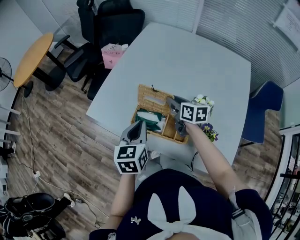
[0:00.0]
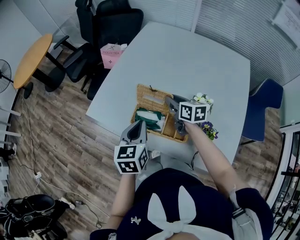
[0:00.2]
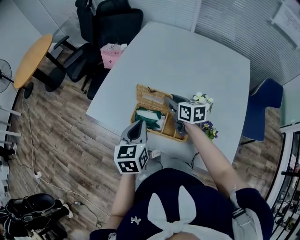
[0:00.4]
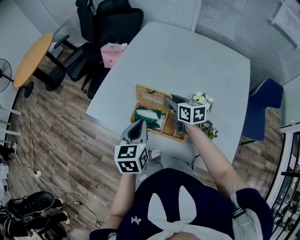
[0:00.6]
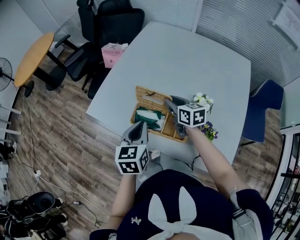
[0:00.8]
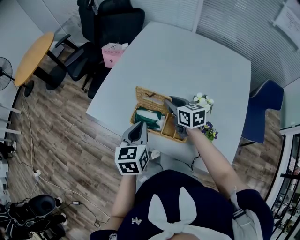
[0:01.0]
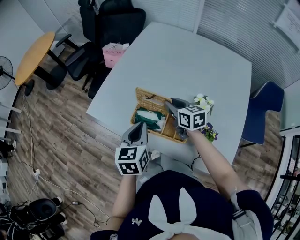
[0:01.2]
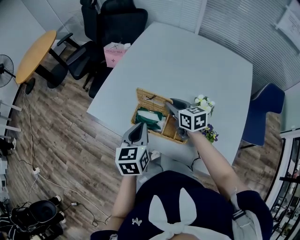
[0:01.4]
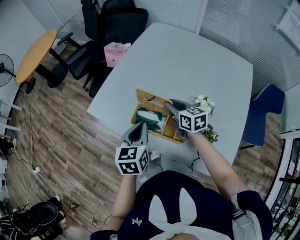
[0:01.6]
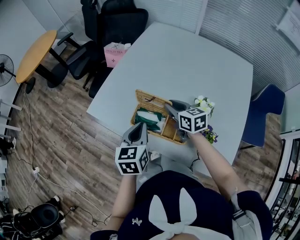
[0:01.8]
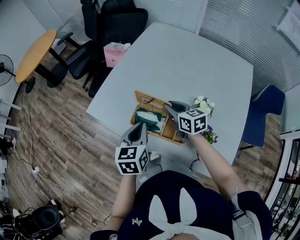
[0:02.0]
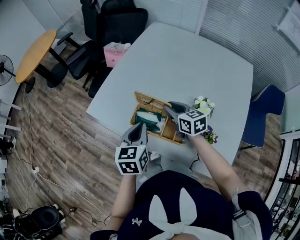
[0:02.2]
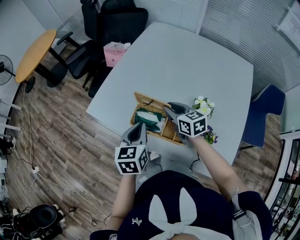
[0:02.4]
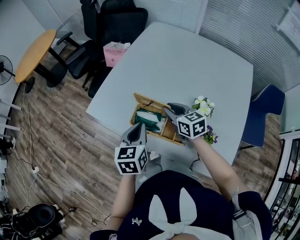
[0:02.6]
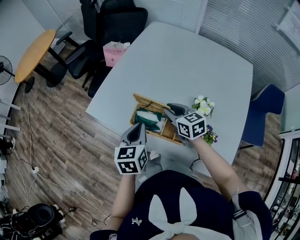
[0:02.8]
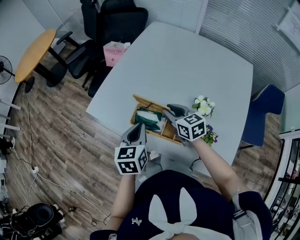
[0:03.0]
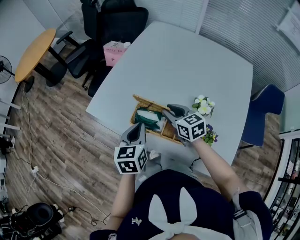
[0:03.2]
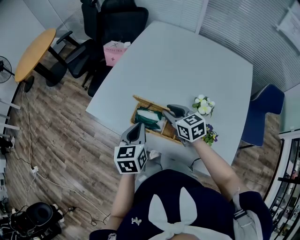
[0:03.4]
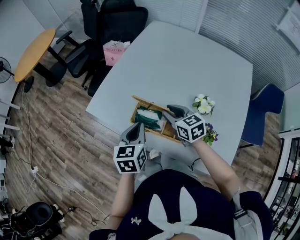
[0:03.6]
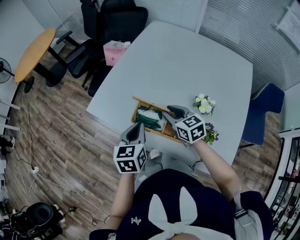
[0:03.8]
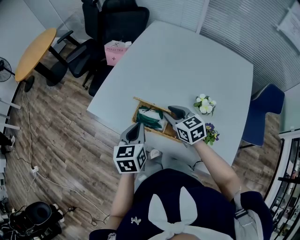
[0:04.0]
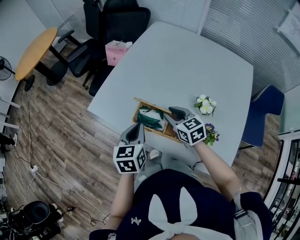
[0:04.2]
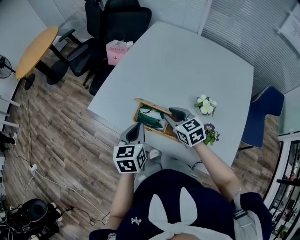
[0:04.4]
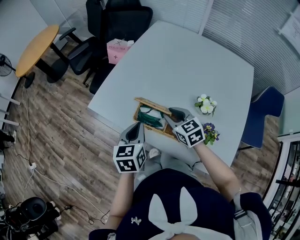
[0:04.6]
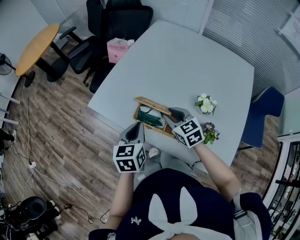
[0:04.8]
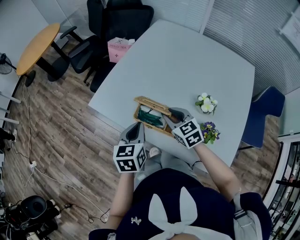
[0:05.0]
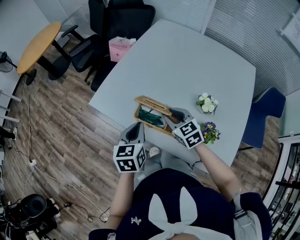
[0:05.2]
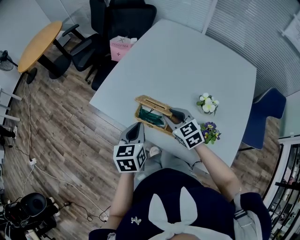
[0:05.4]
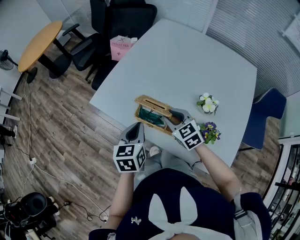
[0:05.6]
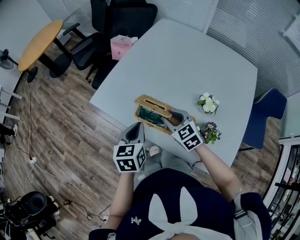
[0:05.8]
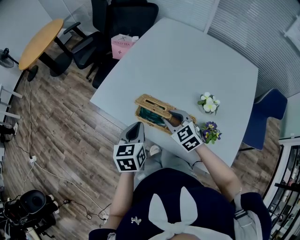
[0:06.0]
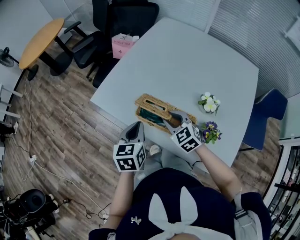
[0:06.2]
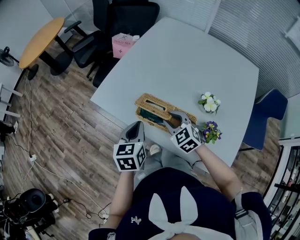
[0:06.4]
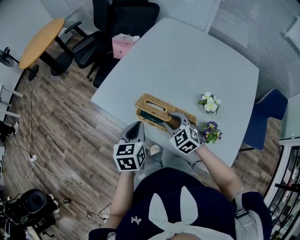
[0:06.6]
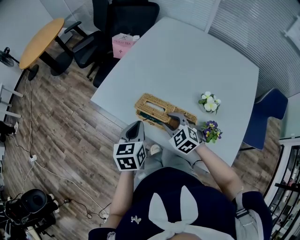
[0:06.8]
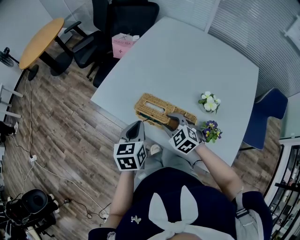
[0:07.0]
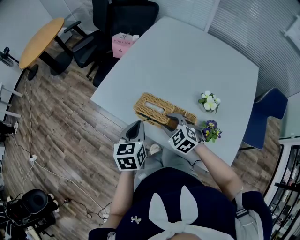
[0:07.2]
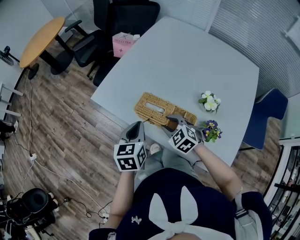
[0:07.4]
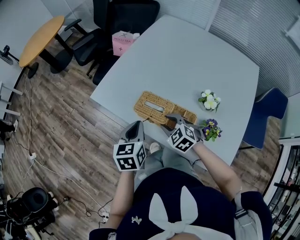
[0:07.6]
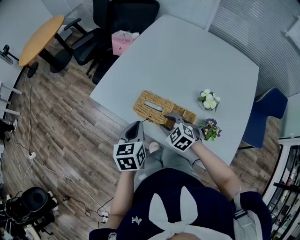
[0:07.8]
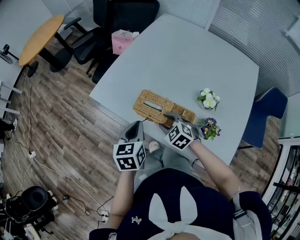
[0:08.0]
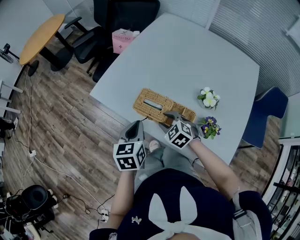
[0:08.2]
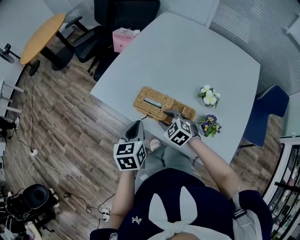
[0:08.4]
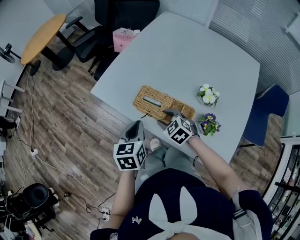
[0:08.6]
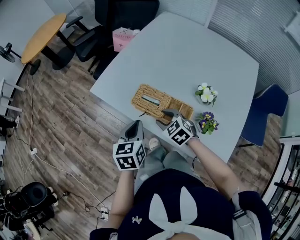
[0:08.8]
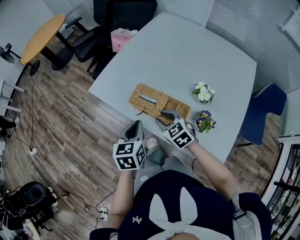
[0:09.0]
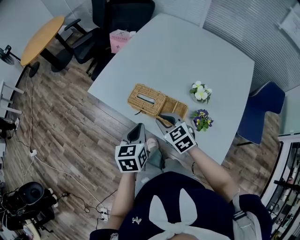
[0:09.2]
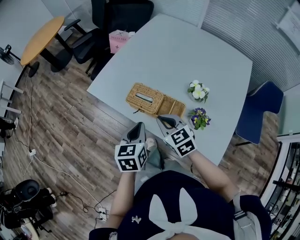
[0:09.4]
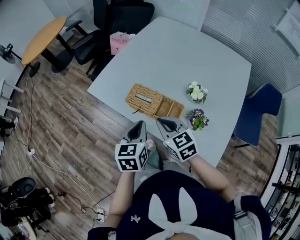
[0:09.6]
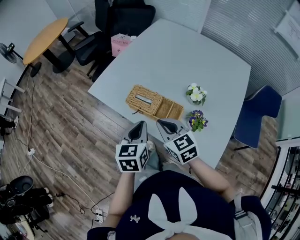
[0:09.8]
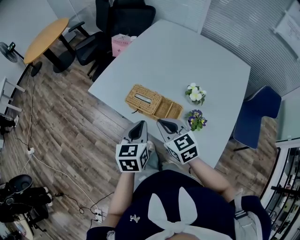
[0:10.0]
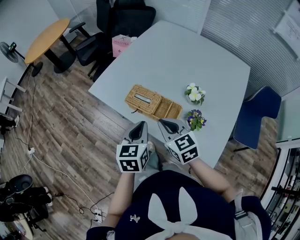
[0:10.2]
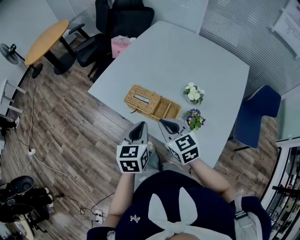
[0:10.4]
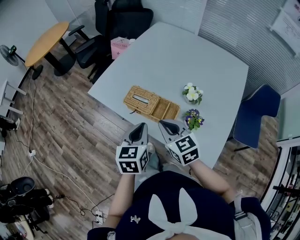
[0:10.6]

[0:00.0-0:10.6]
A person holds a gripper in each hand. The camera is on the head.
0:00.0 to 0:01.6: There are only small adjustments of the grippers.
0:01.6 to 0:03.0: The grippers make only small movements.
0:03.0 to 0:04.6: The grippers stay close to where they were, moving slightly.
0:04.6 to 0:06.0: The grippers stay close to where they were, moving slightly.
0:06.0 to 0:07.6: The right gripper ends up approximately 5 cm from where it was.
0:07.6 to 0:09.0: The left gripper moves roughly 5 cm.
0:09.0 to 0:10.6: The left gripper heads backward and to the right, covering roughly 10 cm. Meanwhile the right gripper moves upward and backward, approximately 15 cm, and closes up.

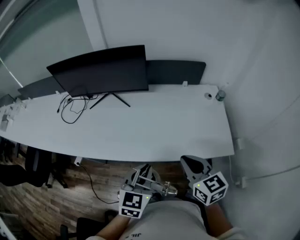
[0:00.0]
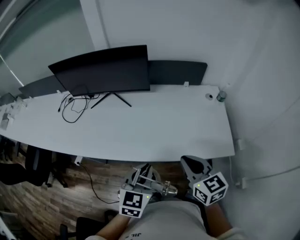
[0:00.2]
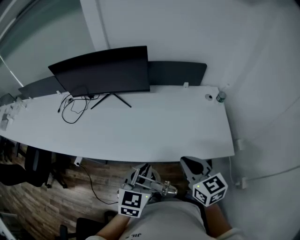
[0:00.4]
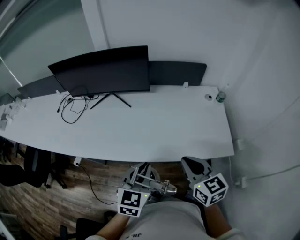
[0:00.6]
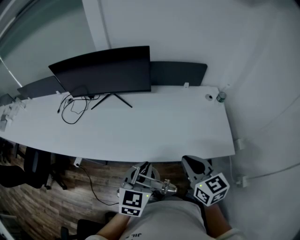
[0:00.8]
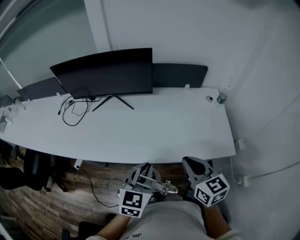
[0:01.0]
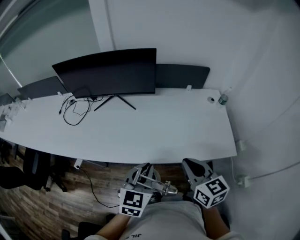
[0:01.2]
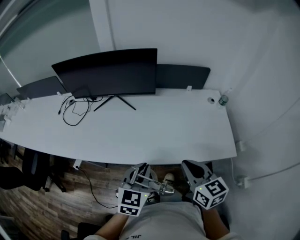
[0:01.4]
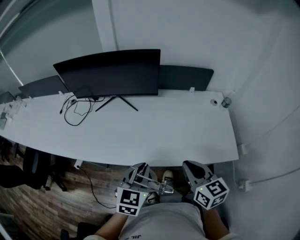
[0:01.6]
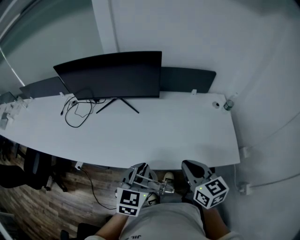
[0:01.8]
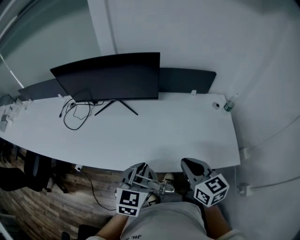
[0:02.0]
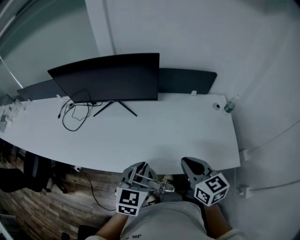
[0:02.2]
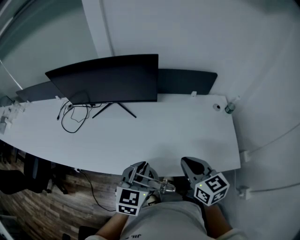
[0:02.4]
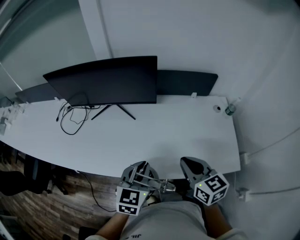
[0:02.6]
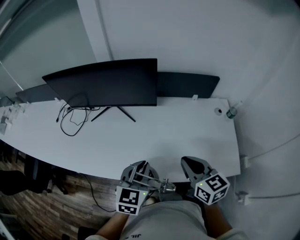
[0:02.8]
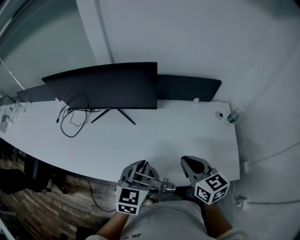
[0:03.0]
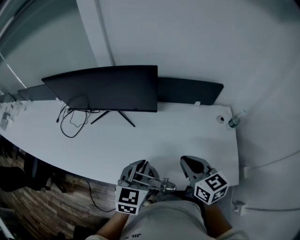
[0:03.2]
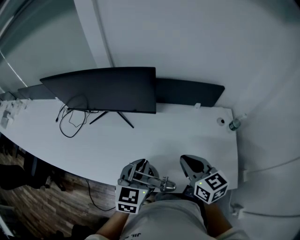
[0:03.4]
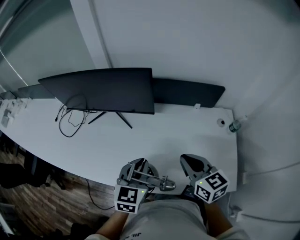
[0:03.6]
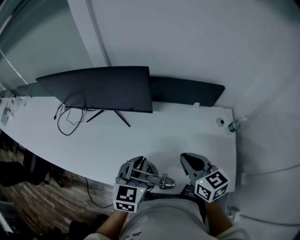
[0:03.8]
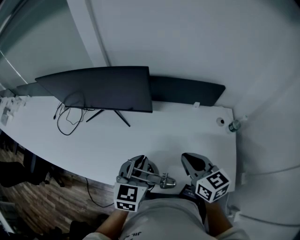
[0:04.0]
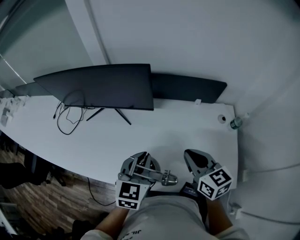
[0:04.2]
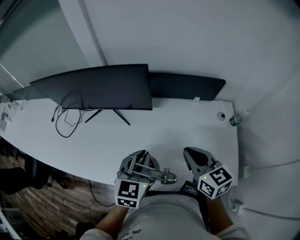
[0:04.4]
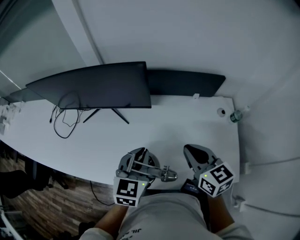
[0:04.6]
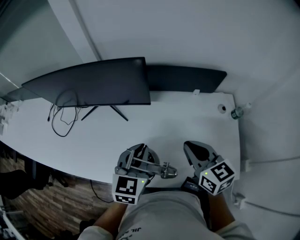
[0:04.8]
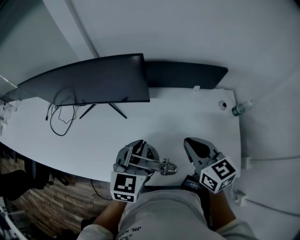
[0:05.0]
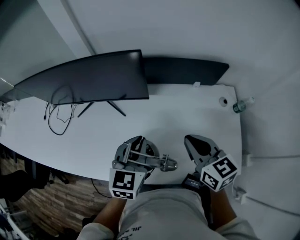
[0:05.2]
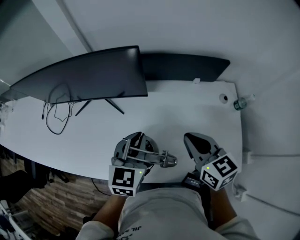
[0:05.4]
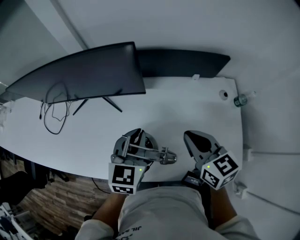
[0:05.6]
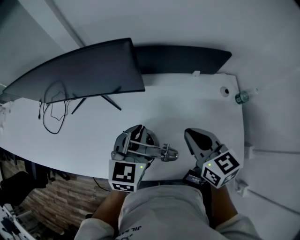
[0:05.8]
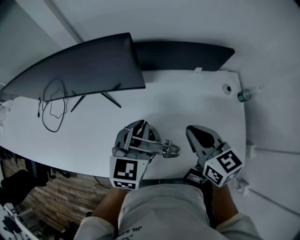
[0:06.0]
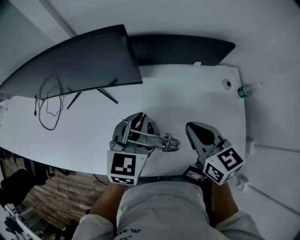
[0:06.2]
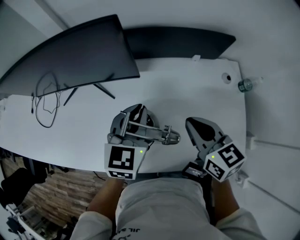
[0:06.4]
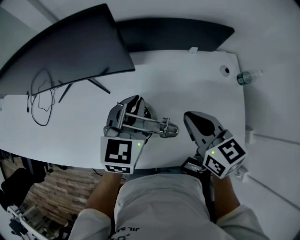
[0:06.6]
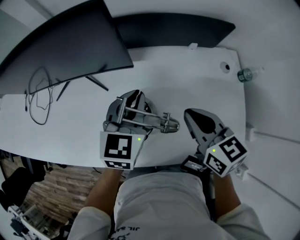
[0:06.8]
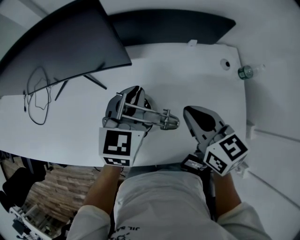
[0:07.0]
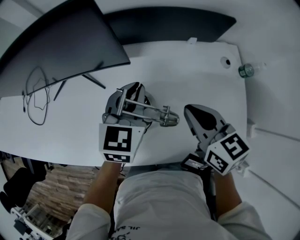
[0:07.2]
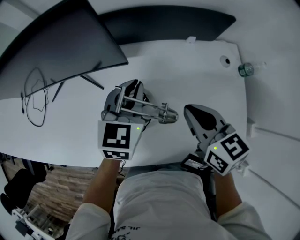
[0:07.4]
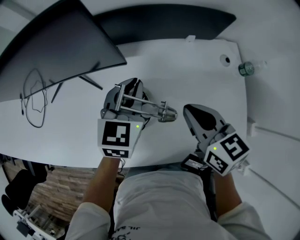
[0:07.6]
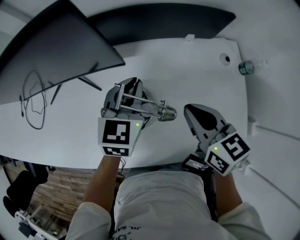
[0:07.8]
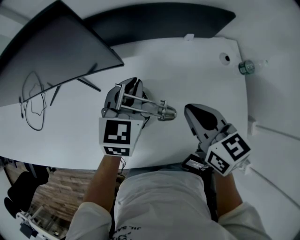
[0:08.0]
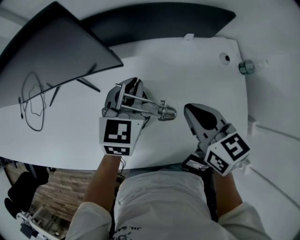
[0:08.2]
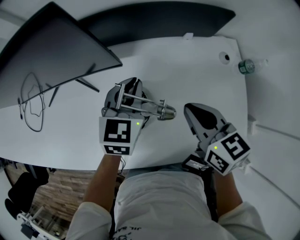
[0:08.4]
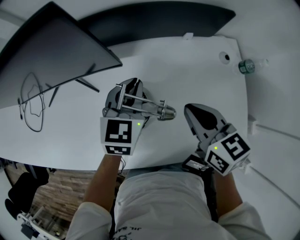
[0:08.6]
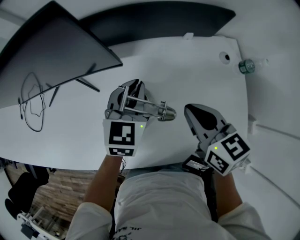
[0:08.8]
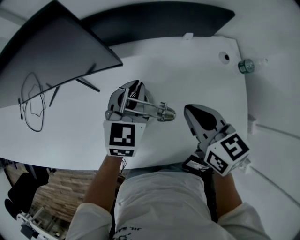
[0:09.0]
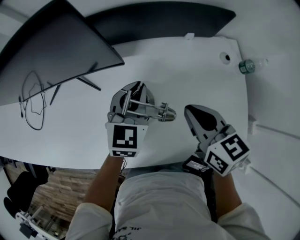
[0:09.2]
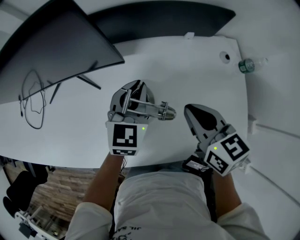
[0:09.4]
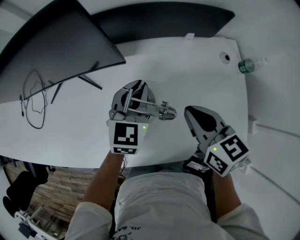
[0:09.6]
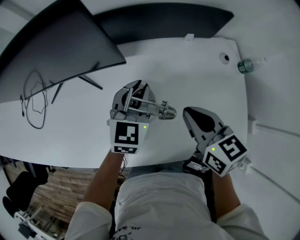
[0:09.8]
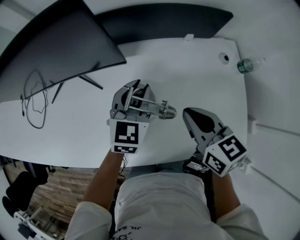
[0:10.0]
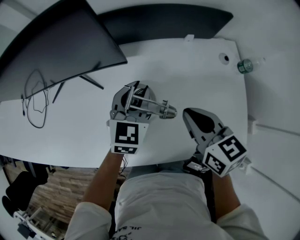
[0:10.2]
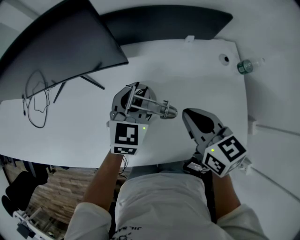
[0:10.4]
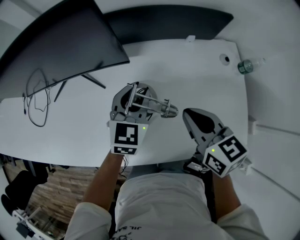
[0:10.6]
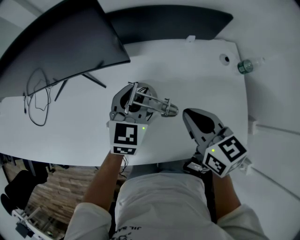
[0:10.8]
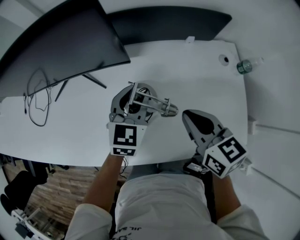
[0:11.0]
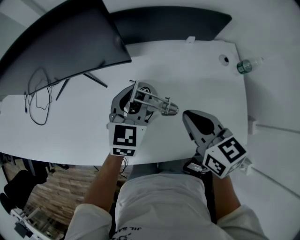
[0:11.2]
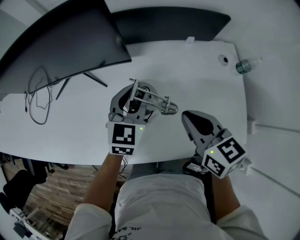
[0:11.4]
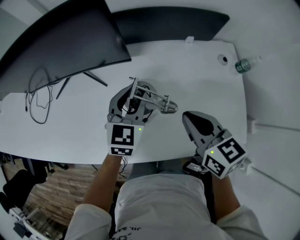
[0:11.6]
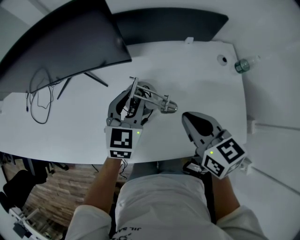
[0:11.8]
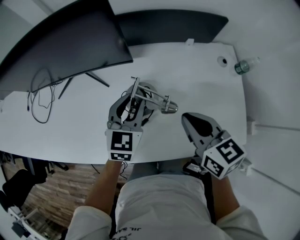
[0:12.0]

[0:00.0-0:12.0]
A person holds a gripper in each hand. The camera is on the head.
0:00.0 to 0:01.6: The left gripper goes roughly 5 cm to the left.
0:01.6 to 0:03.0: The grippers both shift forward by about 15 cm.
0:03.0 to 0:04.4: The grippers both shift forward by some 5 cm.
0:04.4 to 0:06.0: The left gripper shifts roughly 10 cm forward. The right gripper moves approximately 5 cm.
0:06.0 to 0:07.6: The left gripper is displaced forward by roughly 5 cm.
0:07.6 to 0:10.4: There are only small adjustments of the grippers.
0:10.4 to 0:12.0: The left gripper moves some 5 cm.

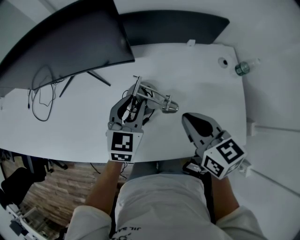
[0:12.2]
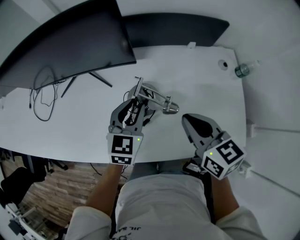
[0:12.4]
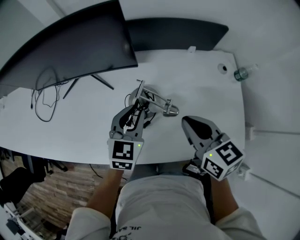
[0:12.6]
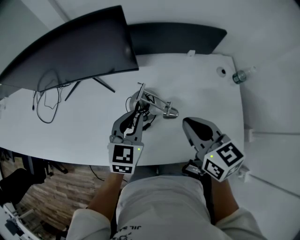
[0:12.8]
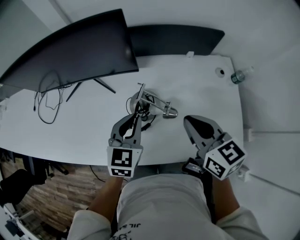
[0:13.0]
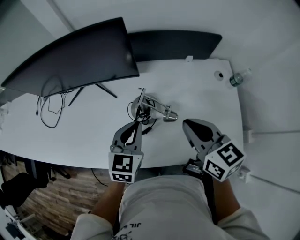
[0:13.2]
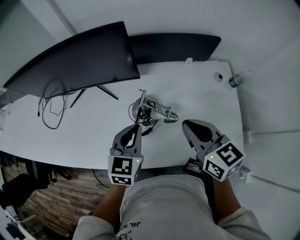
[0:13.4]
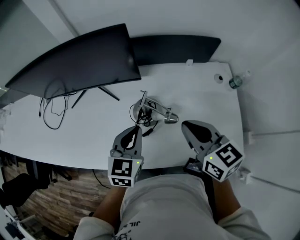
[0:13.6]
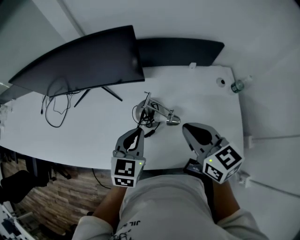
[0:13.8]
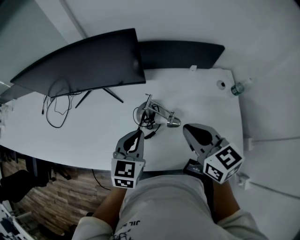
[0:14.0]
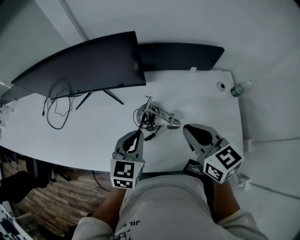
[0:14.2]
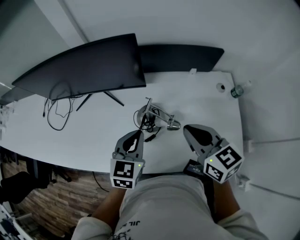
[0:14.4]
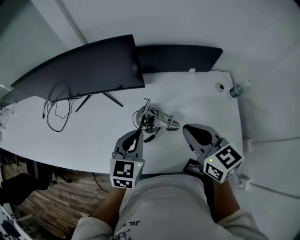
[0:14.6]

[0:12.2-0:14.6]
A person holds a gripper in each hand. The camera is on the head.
0:12.2 to 0:13.4: The right gripper is displaced upward by some 5 cm; the left gripper heads backward, covering roughly 5 cm, and closes up.
0:13.4 to 0:14.6: The grippers make only small movements.
